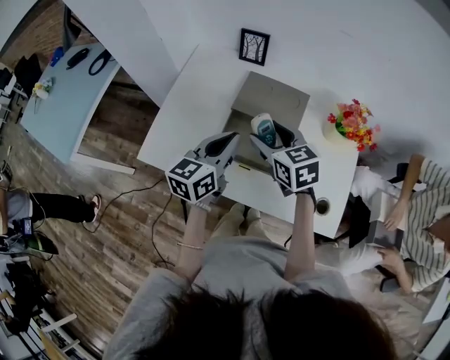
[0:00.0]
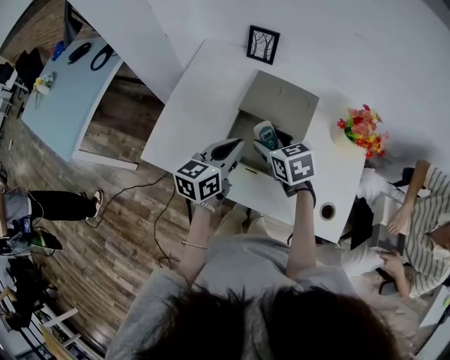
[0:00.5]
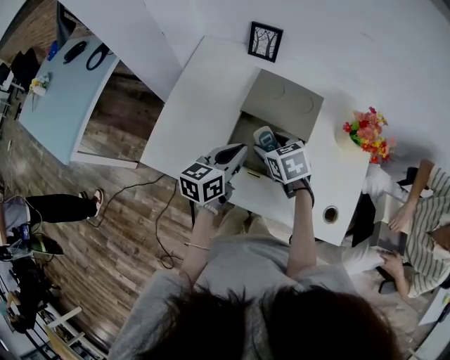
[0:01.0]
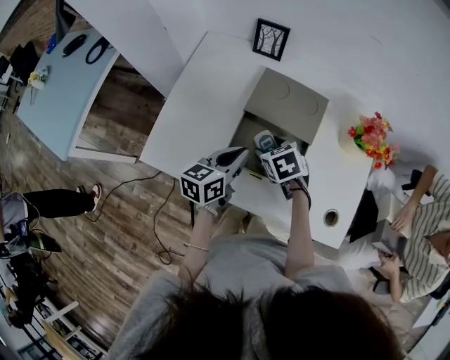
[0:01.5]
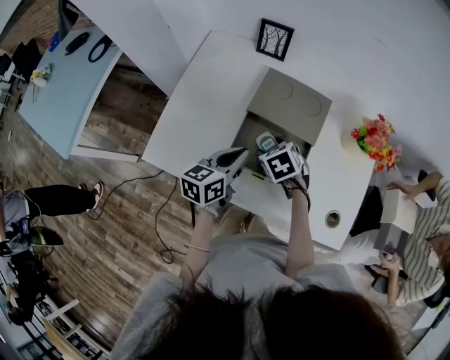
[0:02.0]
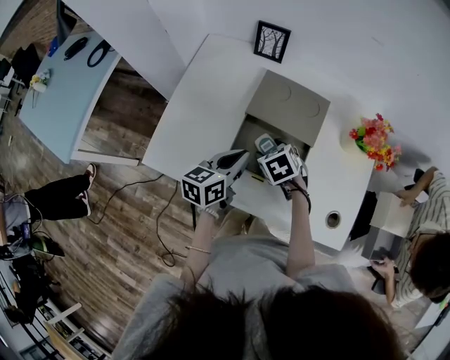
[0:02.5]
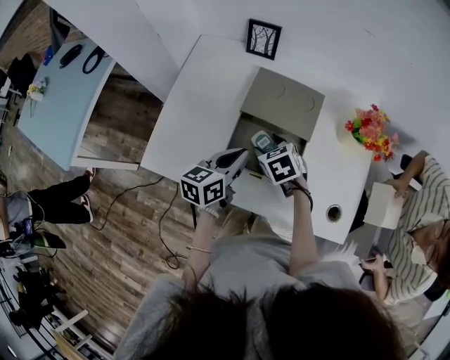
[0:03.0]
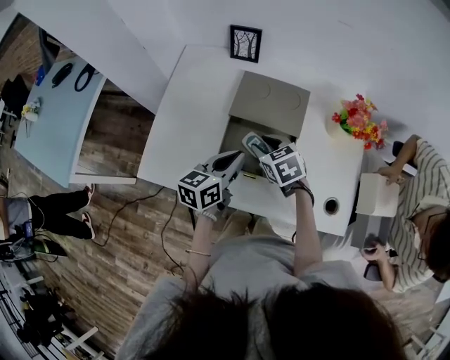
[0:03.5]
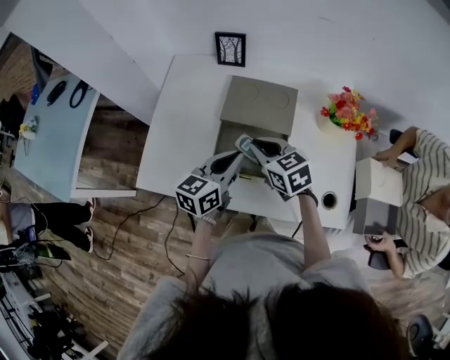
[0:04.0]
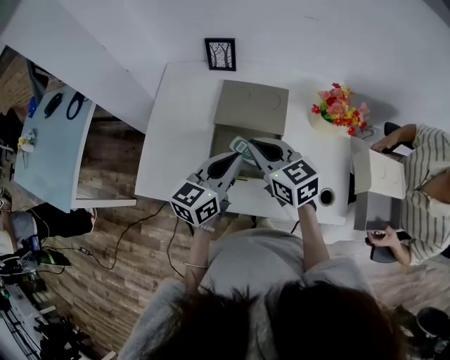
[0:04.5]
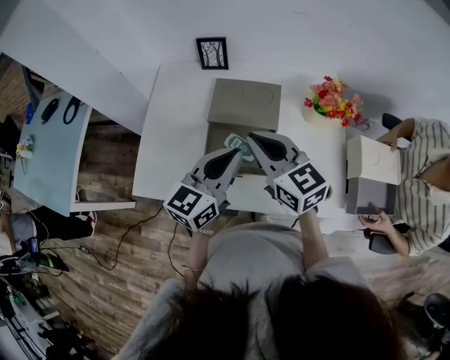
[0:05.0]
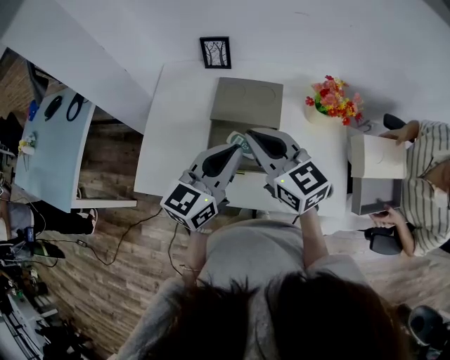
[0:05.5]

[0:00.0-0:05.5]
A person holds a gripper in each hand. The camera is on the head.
0:00.0 to 0:02.0: The right gripper is displaced downward by roughly 15 cm, and points its fingers some 30 degrees further downward, while the left gripper travels downward by approximately 10 cm.
0:02.0 to 0:03.5: The right gripper closes up.
0:03.5 to 0:05.5: The grippers both shift upward by approximately 15 cm. The left gripper changes its angle by roughly 30 degrees. Meanwhile the right gripper tilts its fingers roughly 40 degrees upward, and closes up.

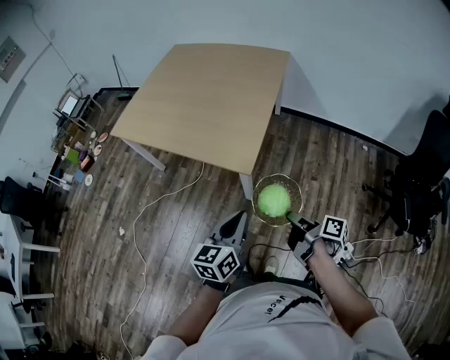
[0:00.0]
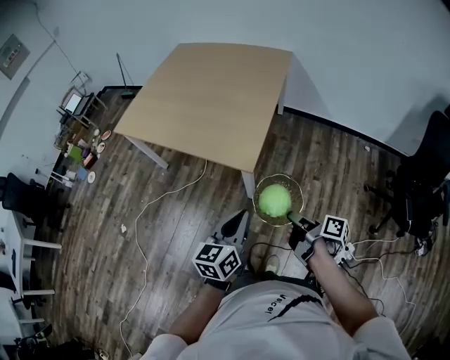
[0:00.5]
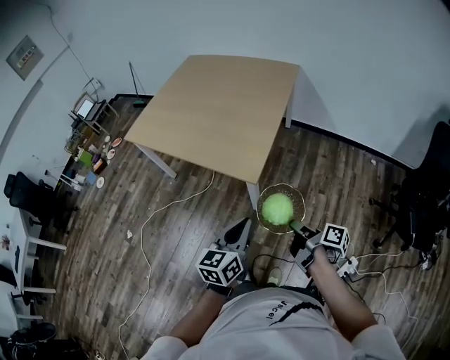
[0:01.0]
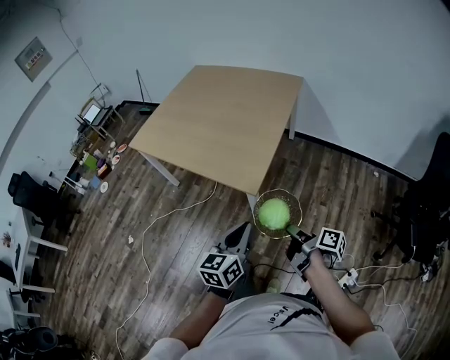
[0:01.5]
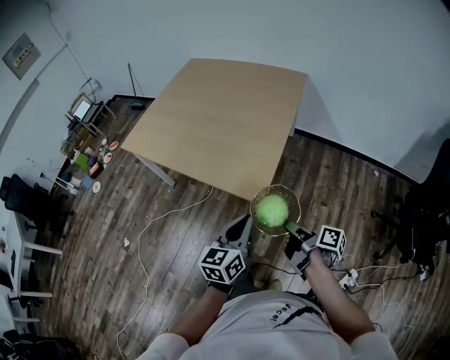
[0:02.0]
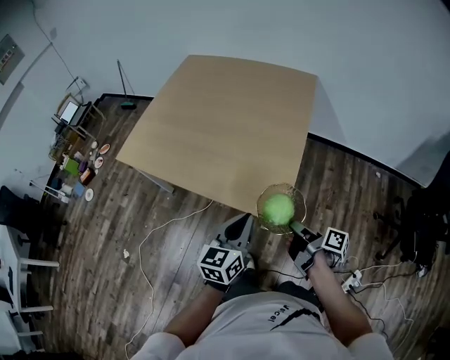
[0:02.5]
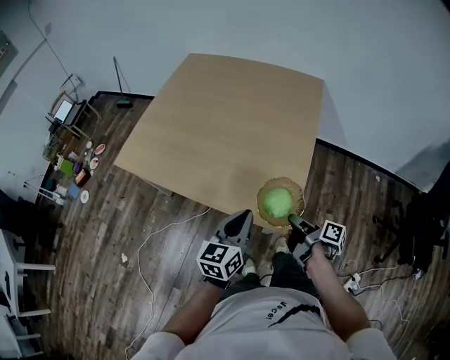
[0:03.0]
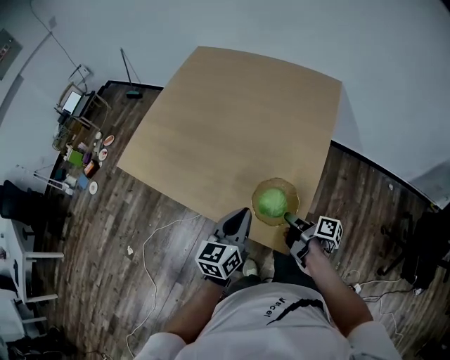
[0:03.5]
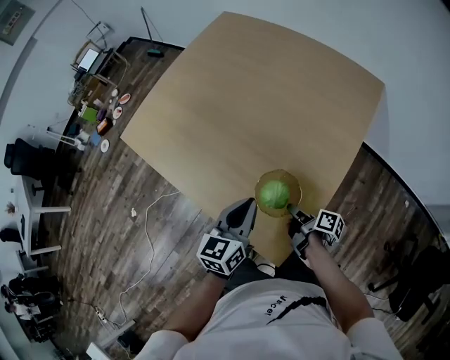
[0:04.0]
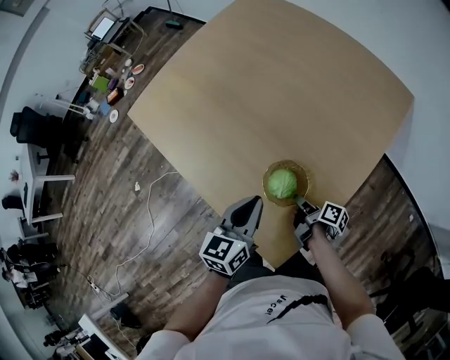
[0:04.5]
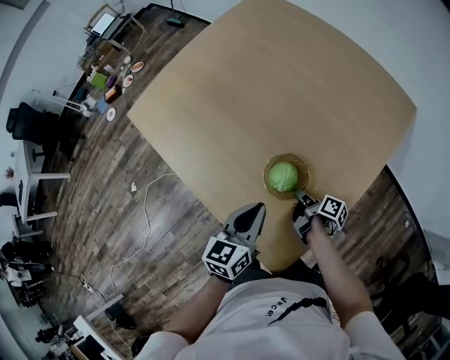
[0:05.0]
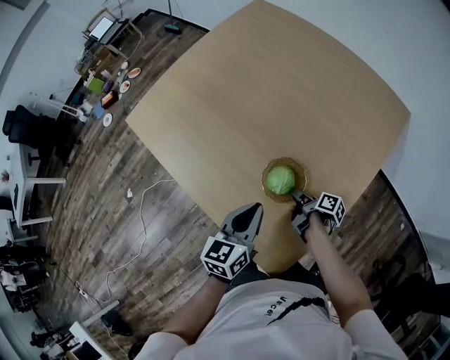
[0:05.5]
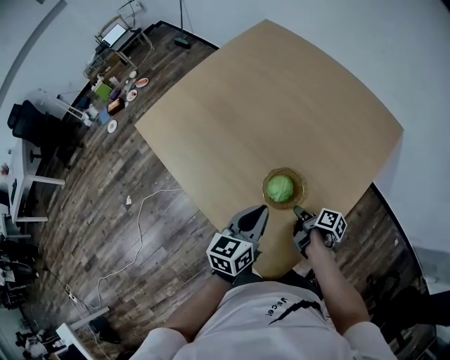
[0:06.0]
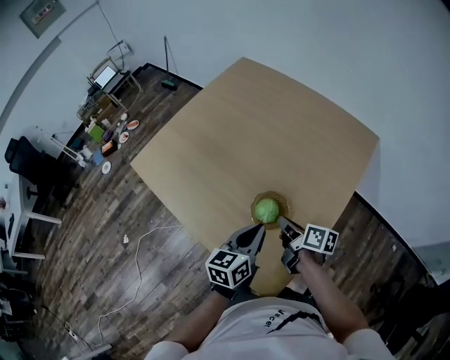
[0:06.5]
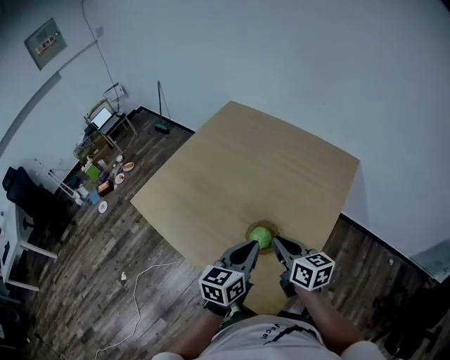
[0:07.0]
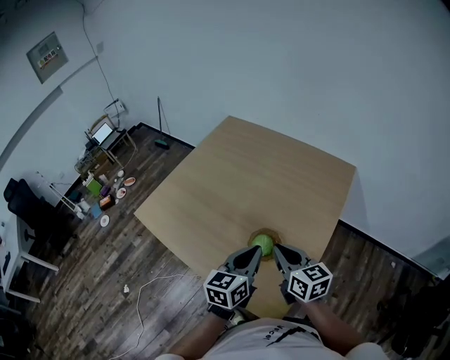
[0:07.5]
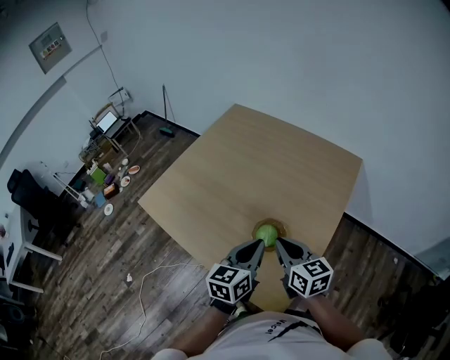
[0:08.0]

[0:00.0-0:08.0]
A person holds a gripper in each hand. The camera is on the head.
0:00.0 to 0:02.0: The left gripper shifts by approximately 10 cm.
0:02.0 to 0:04.0: The left gripper changes place by roughly 40 cm.
0:04.0 to 0:06.0: The left gripper ends up roughly 5 cm from where it was.
0:06.0 to 0:08.0: The left gripper heads upward, covering some 10 cm.

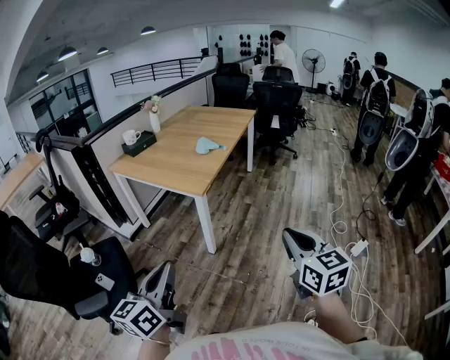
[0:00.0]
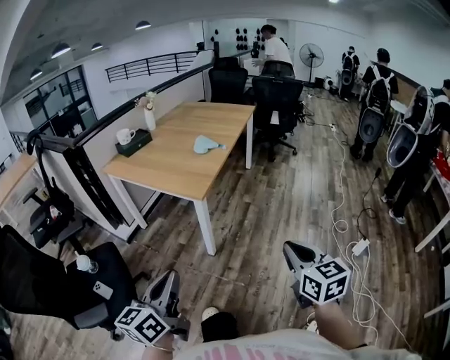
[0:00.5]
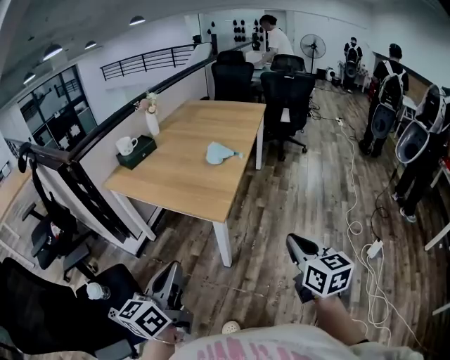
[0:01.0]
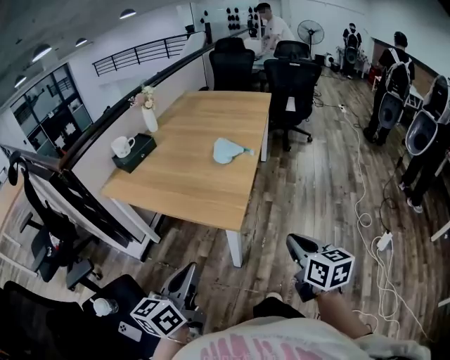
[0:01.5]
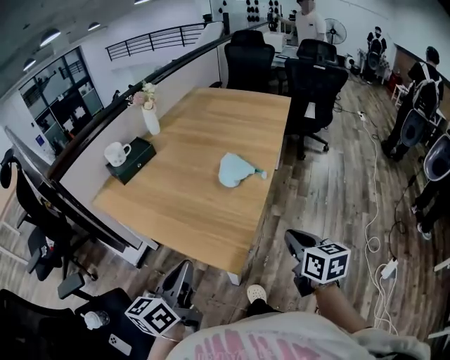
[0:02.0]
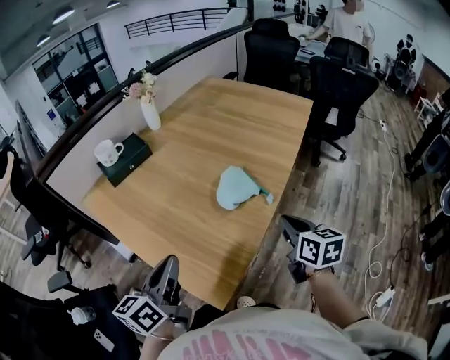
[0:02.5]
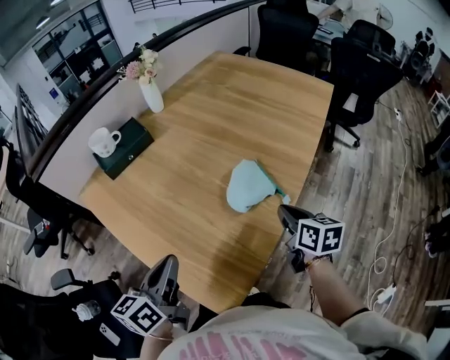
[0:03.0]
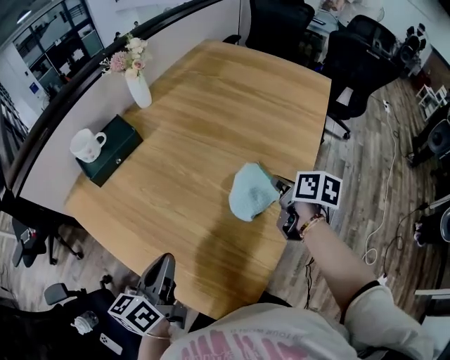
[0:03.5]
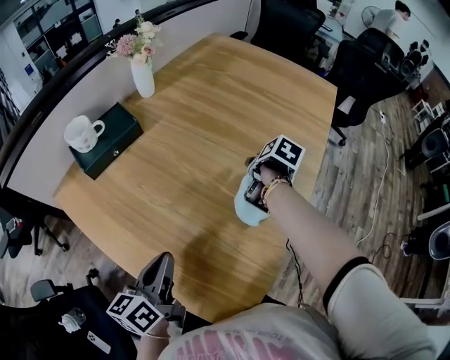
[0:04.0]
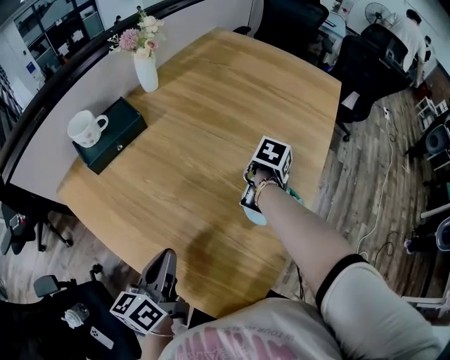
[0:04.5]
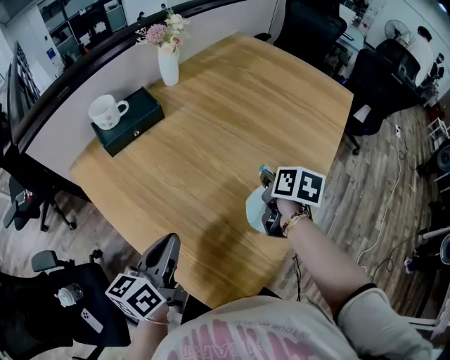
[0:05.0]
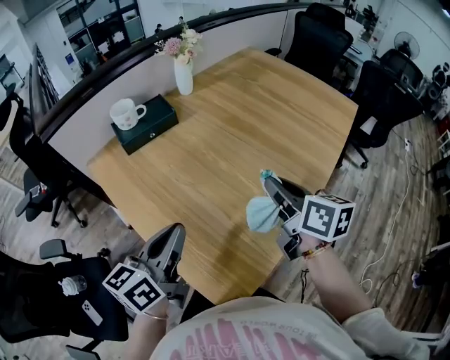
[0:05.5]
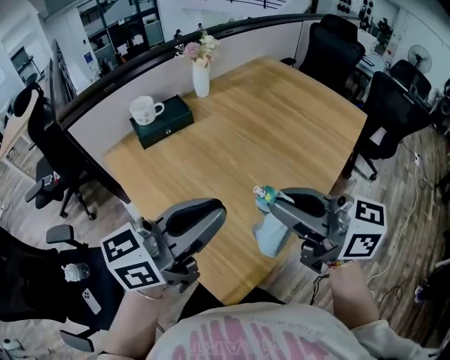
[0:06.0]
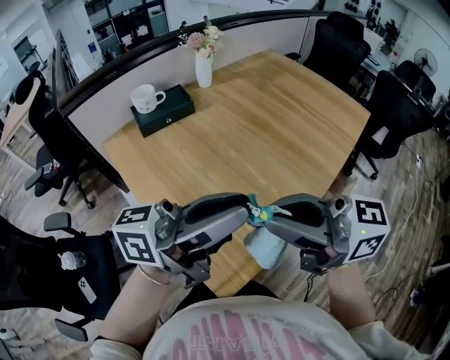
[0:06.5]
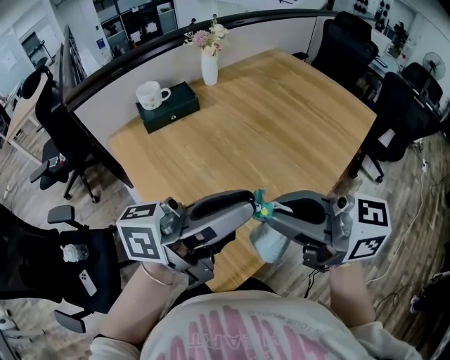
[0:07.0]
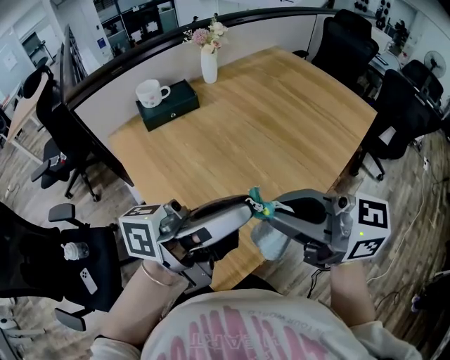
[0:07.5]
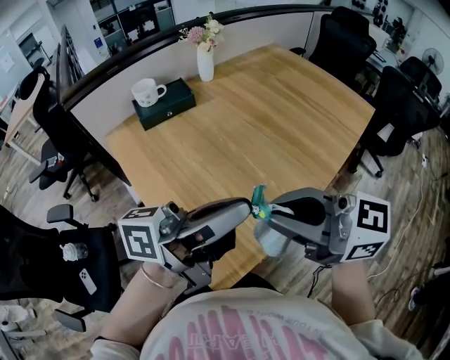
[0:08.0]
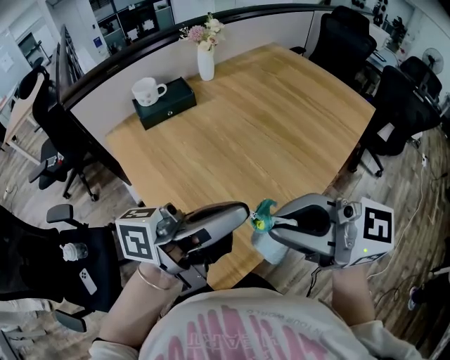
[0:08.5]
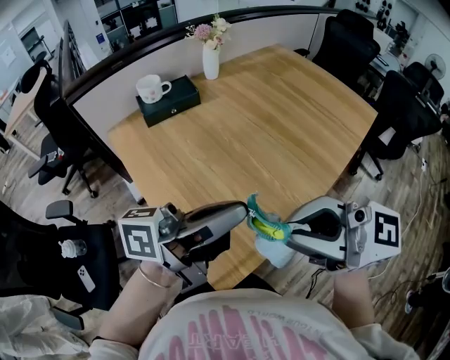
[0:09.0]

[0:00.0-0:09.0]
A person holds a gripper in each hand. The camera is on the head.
0:00.0 to 0:02.0: The two grippers travel together, forward, some 50 cm. The right gripper rotates about 20 degrees.
0:02.0 to 0:04.5: The left gripper moves about 25 cm, while the right gripper ends up approximately 50 cm from where it was, tips its fingers downward by roughly 40 degrees, and opens.
0:04.5 to 0:07.0: The grippers both shift upward by roughly 30 cm. The left gripper tips its fingers upward by about 40 degrees, and opens its fingers. Meanwhile the right gripper points its fingers approximately 70 degrees further upward, and closes up.
0:07.0 to 0:09.0: The left gripper closes; the right gripper moves roughly 5 cm.

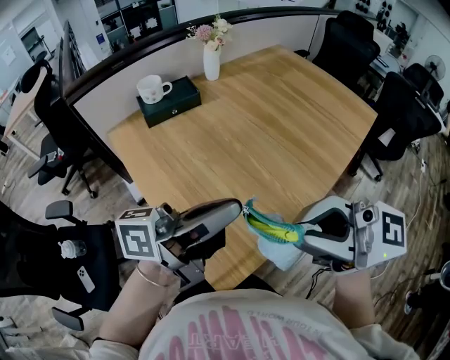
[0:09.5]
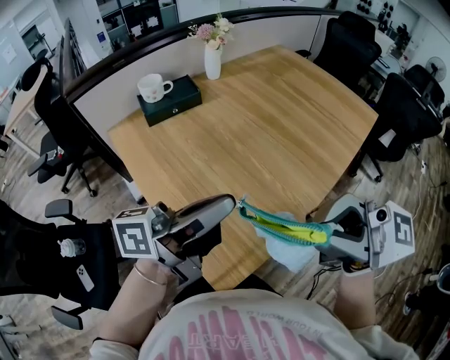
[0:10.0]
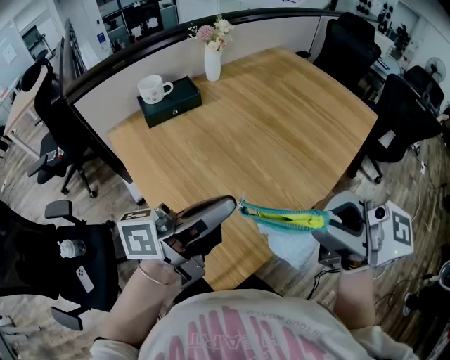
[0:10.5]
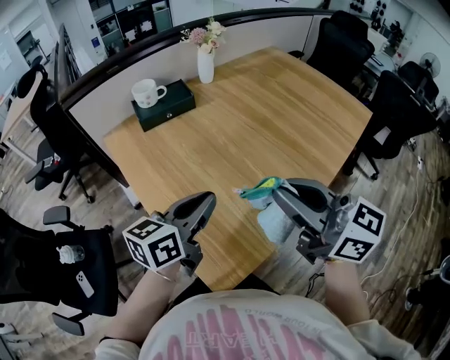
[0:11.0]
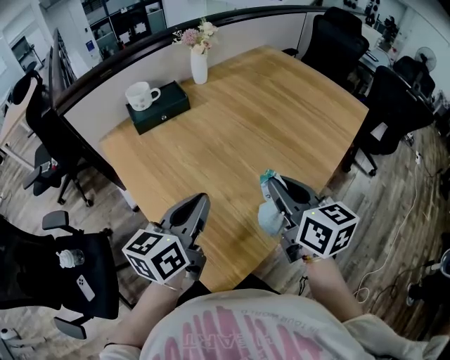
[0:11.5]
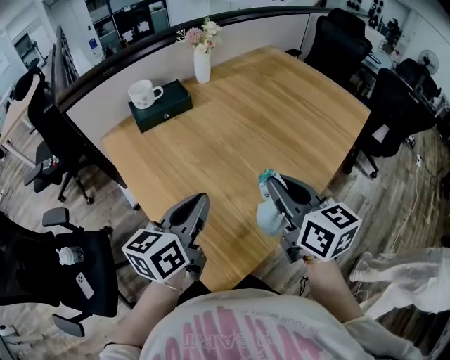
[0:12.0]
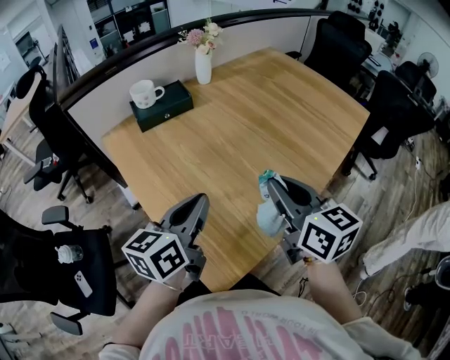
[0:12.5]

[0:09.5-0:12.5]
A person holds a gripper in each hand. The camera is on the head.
0:09.5 to 0:11.0: The right gripper shifts by about 10 cm, and turns by roughly 30 degrees. Meanwhile the left gripper travels downward by approximately 10 cm, and swivels approximately 40 degrees.
0:11.0 to 0:12.5: The right gripper is displaced downward by about 5 cm, and swivels some 30 degrees.

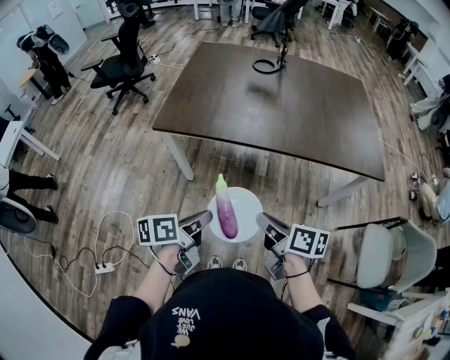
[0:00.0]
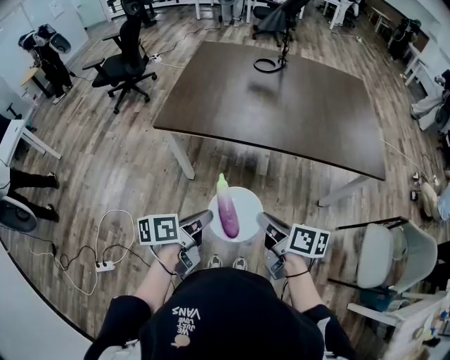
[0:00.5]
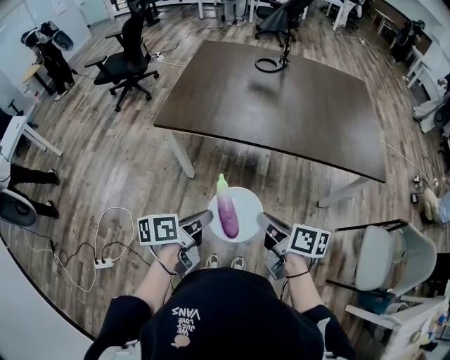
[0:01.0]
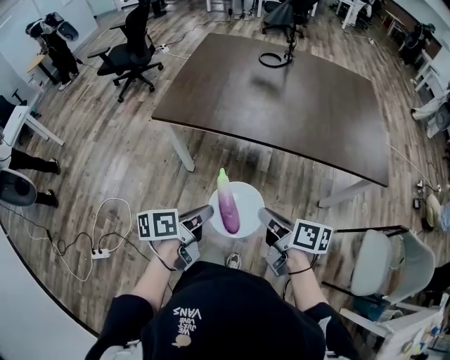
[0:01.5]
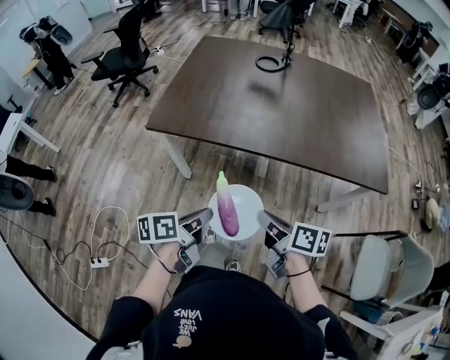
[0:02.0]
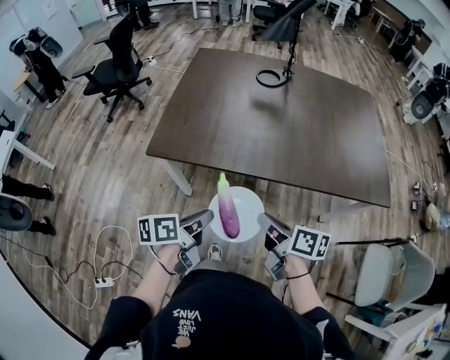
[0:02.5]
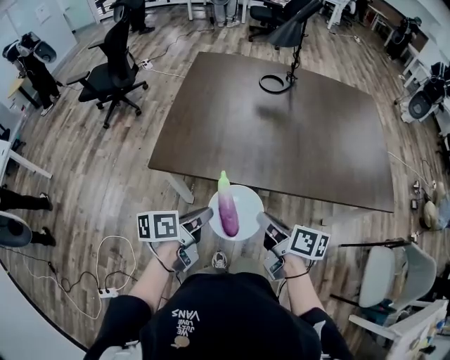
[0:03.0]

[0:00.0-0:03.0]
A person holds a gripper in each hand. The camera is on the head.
0:00.0 to 0:01.5: The grippers move only a little.
0:01.5 to 0:03.0: Both grippers travel together forward and to the left, about 20 cm.
